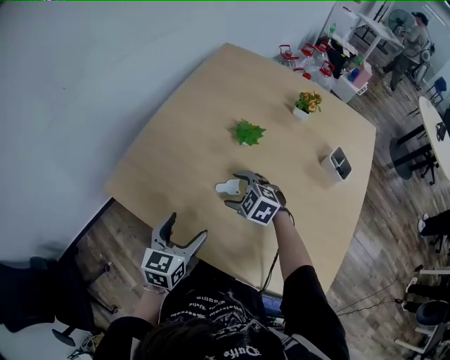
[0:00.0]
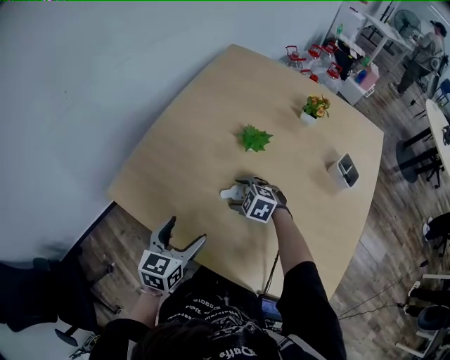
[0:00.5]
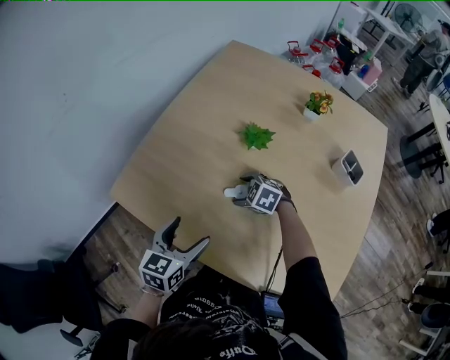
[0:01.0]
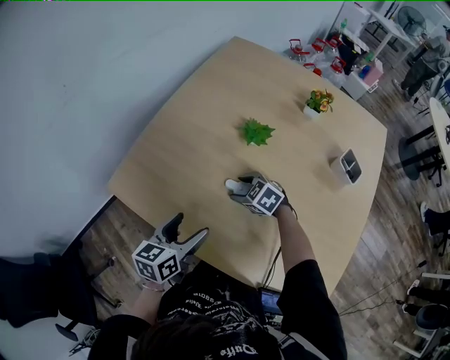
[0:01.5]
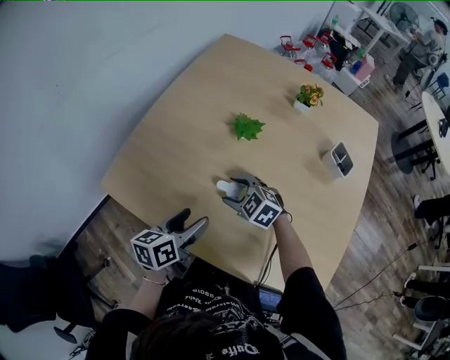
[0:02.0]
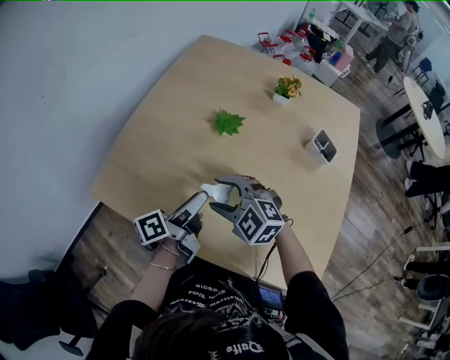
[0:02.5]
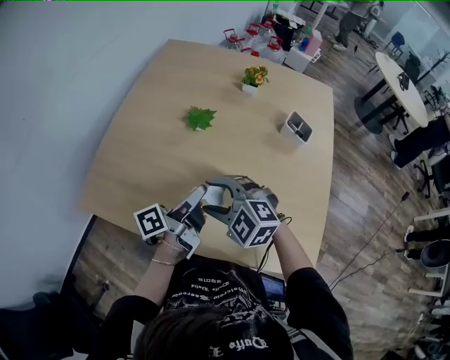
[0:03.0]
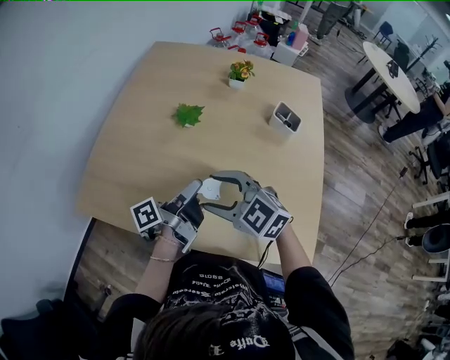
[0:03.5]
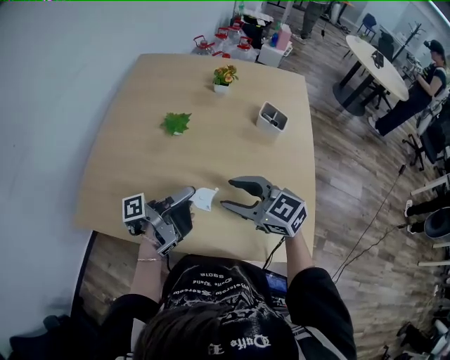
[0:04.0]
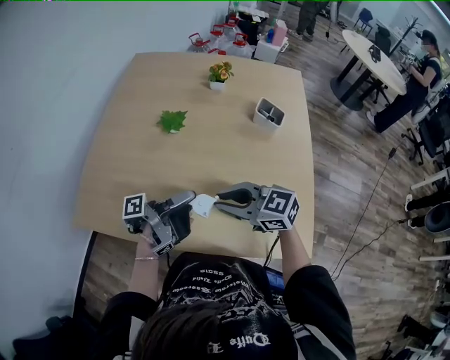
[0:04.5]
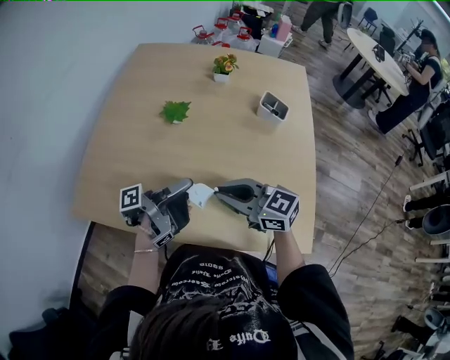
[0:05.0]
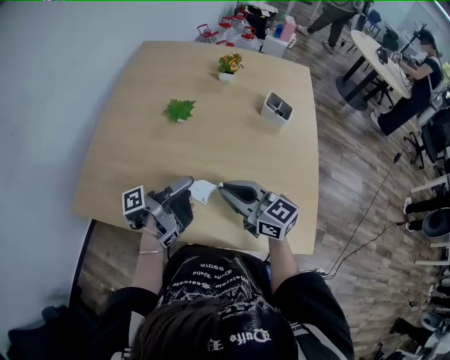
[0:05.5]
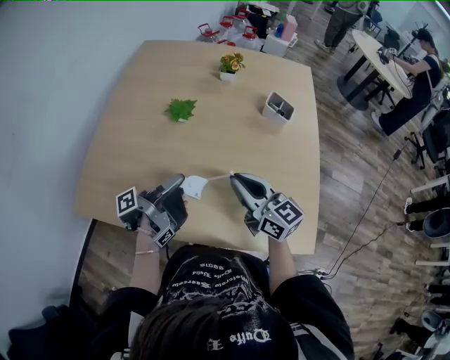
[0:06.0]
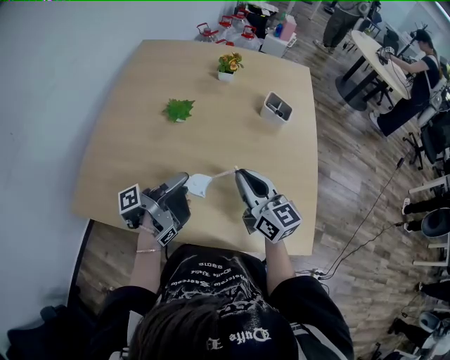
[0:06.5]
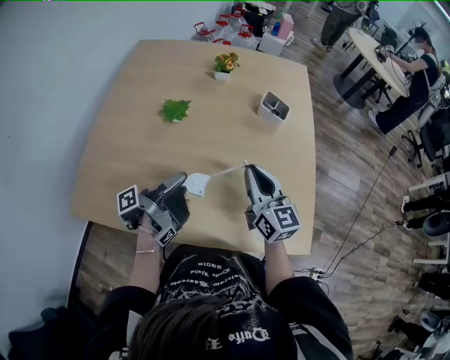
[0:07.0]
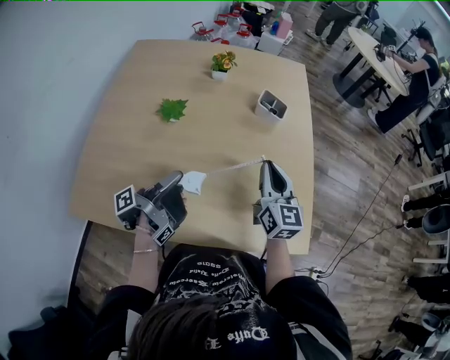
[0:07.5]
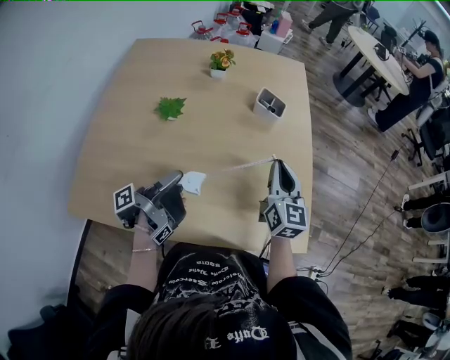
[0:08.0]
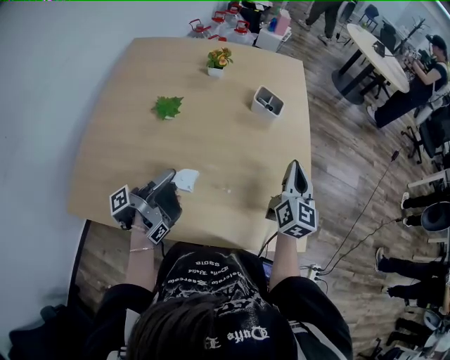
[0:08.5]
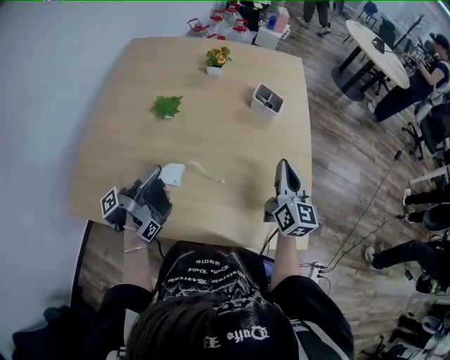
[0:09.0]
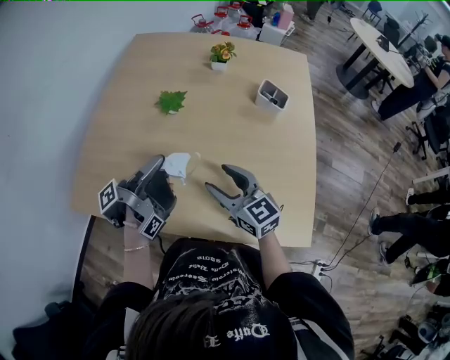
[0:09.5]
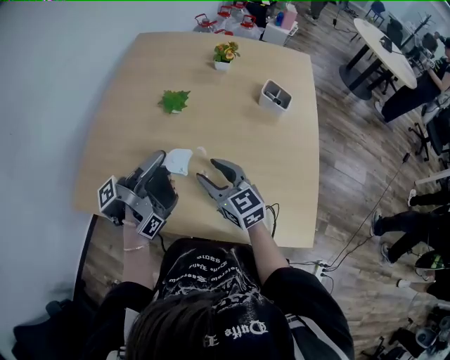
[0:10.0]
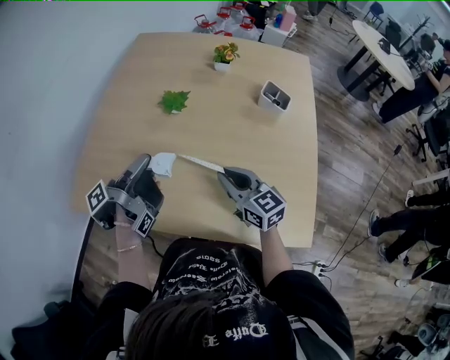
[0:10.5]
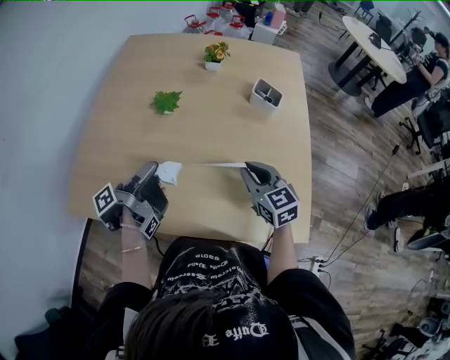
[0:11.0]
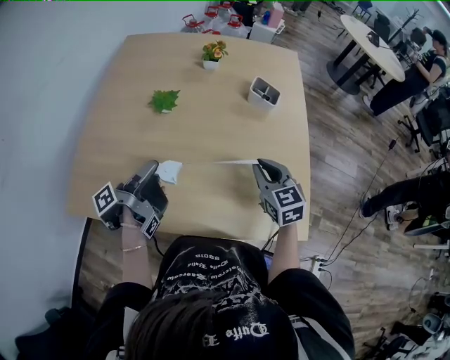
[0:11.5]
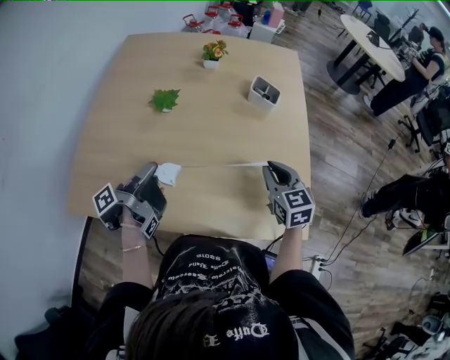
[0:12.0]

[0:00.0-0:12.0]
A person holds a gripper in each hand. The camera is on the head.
0:00.0 to 0:02.0: The left gripper swivels some 30 degrees.
0:02.0 to 0:04.0: The right gripper goes roughly 25 cm upward, backward and to the right, and rotates some 30 degrees. The left gripper moves to the right and upward, about 15 cm, angles its fingers upward, by roughly 30 degrees, and closes its fingers.
0:04.0 to 0:06.0: The left gripper ends up some 5 cm from where it was. The right gripper swivels some 30 degrees, and closes its fingers.
0:06.0 to 0:08.0: The right gripper travels to the right and forward by approximately 15 cm, and changes its angle by some 40 degrees.
0:08.0 to 0:10.0: The left gripper travels upward by about 5 cm; the right gripper moves approximately 20 cm, swivels approximately 40 degrees, and opens its fingers.
0:10.0 to 0:12.0: The left gripper heads downward, covering some 5 cm. Meanwhile the right gripper is displaced to the right by roughly 20 cm, turns by some 30 degrees, and closes.

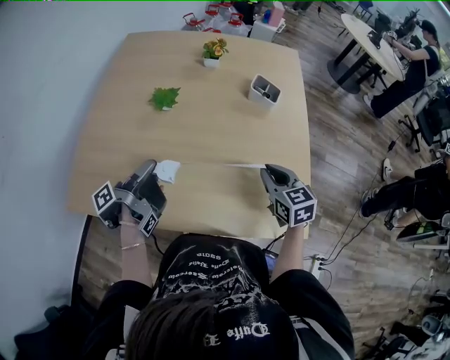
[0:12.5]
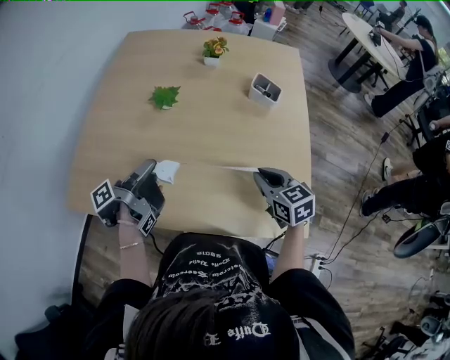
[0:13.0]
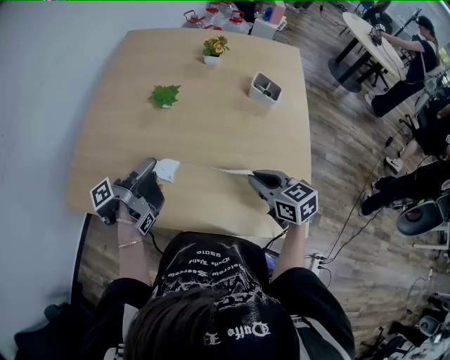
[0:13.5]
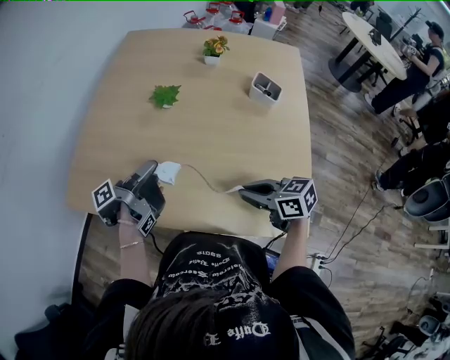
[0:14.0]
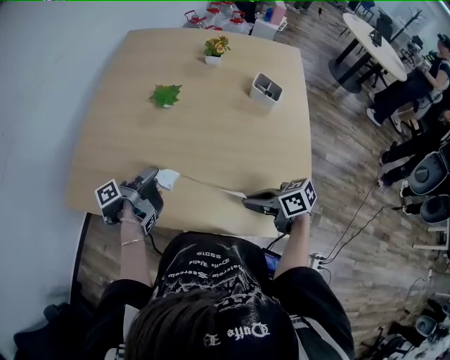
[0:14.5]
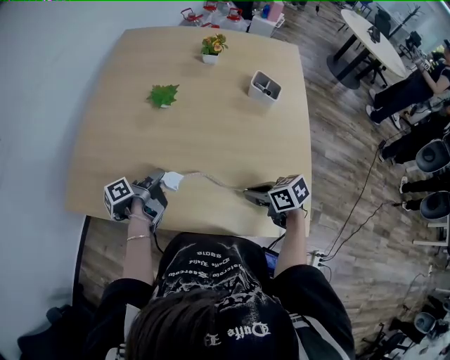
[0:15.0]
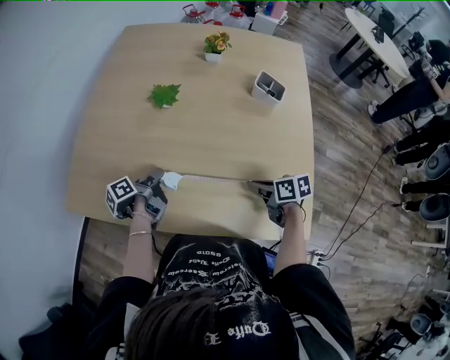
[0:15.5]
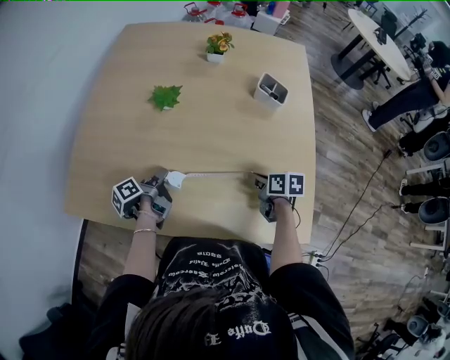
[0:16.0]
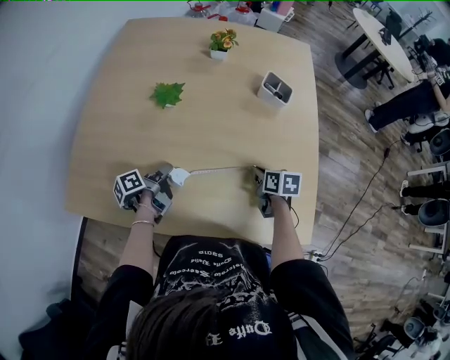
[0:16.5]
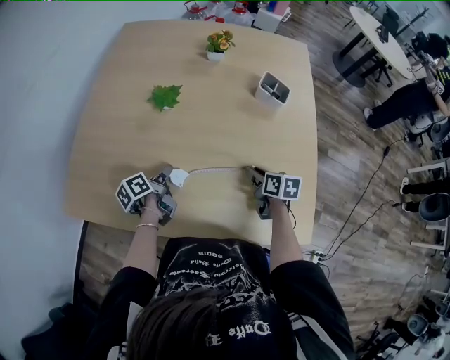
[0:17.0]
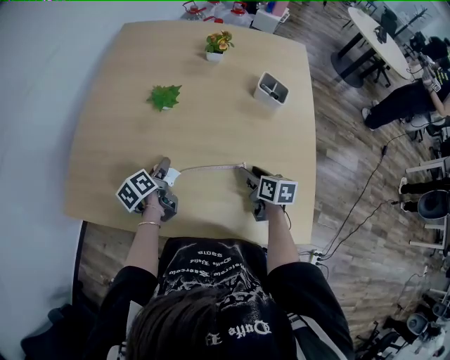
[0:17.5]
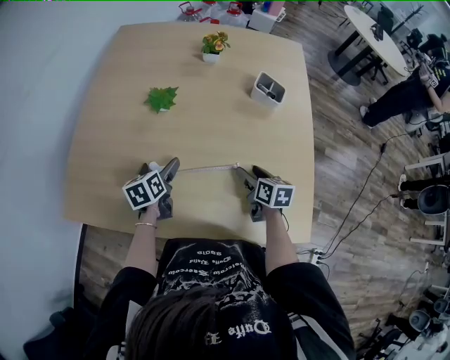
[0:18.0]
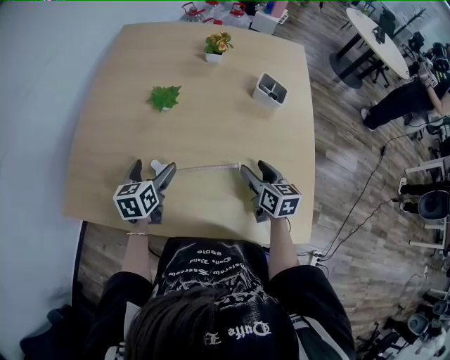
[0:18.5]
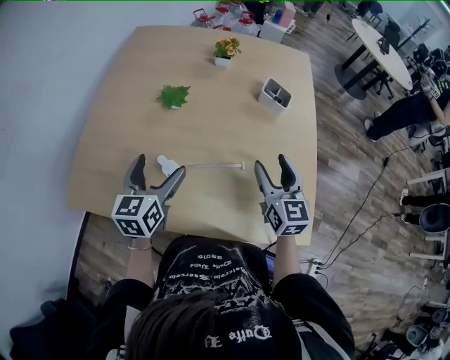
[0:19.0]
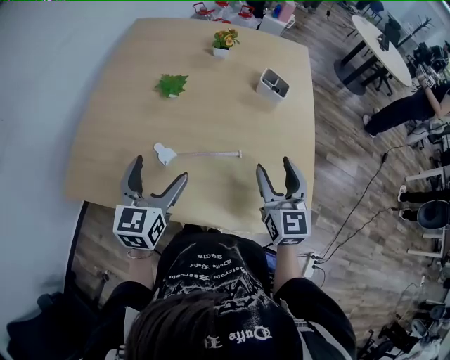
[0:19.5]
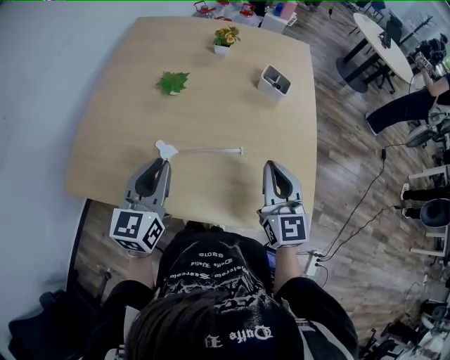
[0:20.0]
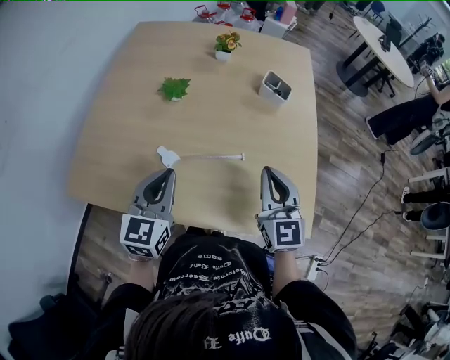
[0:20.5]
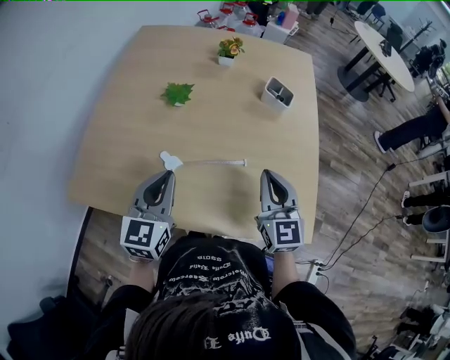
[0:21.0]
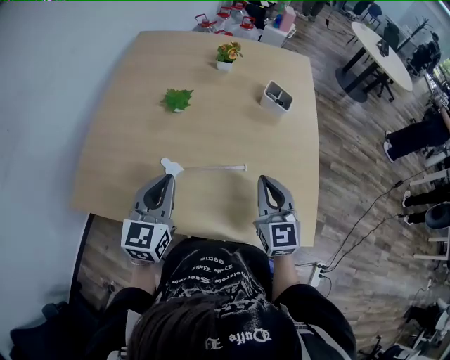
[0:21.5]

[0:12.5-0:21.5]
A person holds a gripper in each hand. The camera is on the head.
0:12.5 to 0:14.5: The right gripper ends up roughly 15 cm from where it was, and changes its angle by about 50 degrees. The left gripper shifts some 5 cm downward.
0:14.5 to 0:17.0: The right gripper moves some 20 cm, and rotates roughly 40 degrees, while the left gripper heads downward, covering roughly 10 cm, and changes its angle by some 30 degrees.
0:17.0 to 0:19.5: The right gripper moves upward, roughly 20 cm, angles its fingers upward, by some 30 degrees, and opens up. Meanwhile the left gripper shifts roughly 25 cm upward and backward, rotates around the line of its fingers by roughly 60 degrees, clockwise from behind, and opens its fingers.
0:19.5 to 0:21.5: The right gripper closes its fingers, while the left gripper closes its fingers.

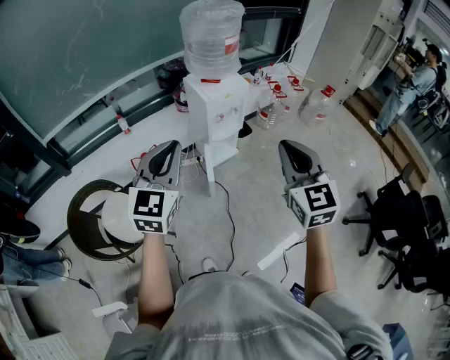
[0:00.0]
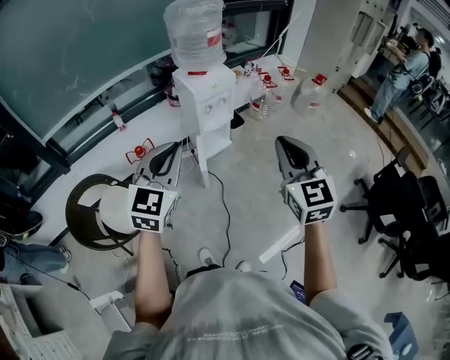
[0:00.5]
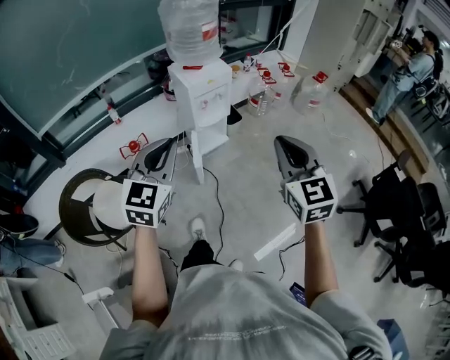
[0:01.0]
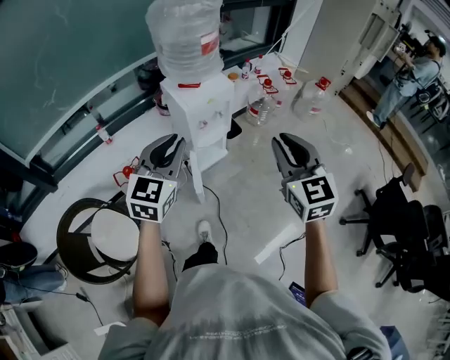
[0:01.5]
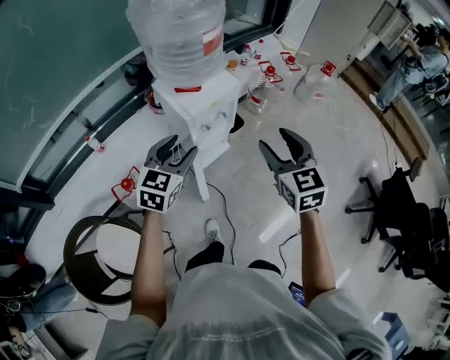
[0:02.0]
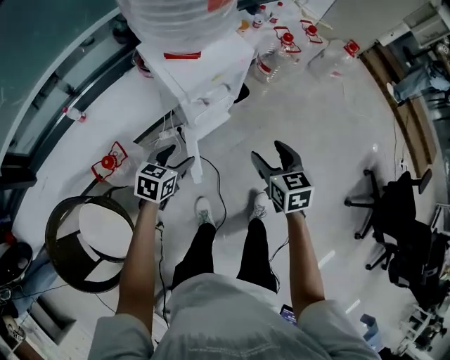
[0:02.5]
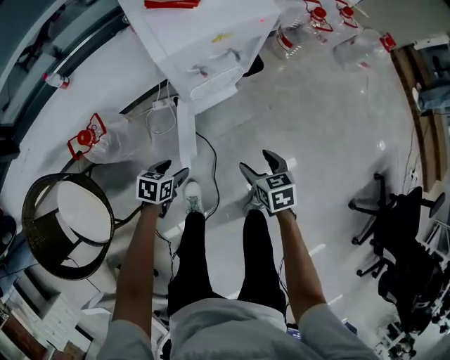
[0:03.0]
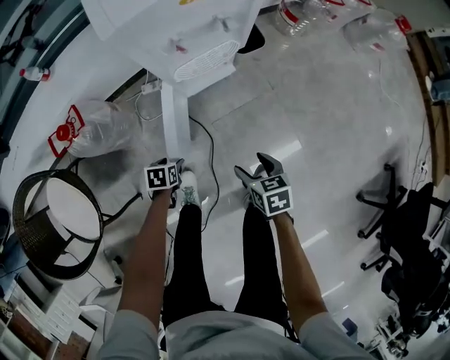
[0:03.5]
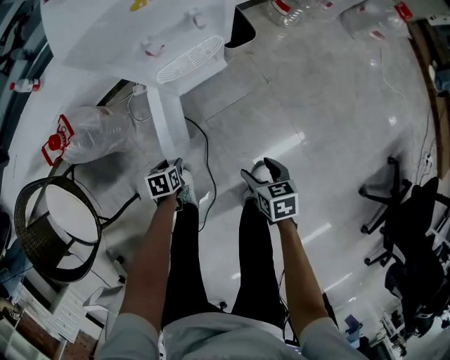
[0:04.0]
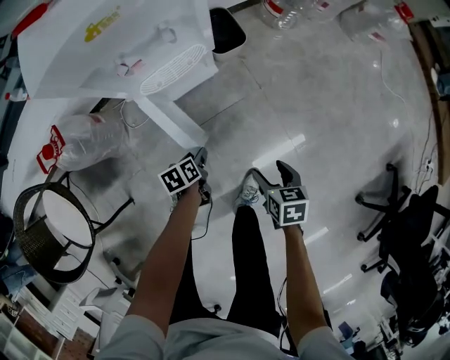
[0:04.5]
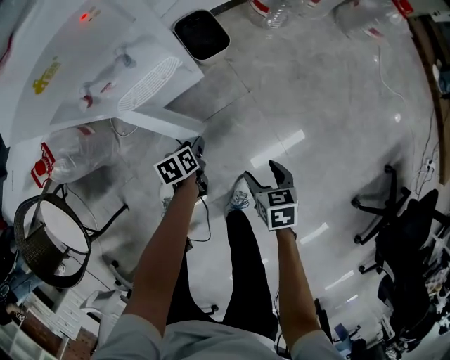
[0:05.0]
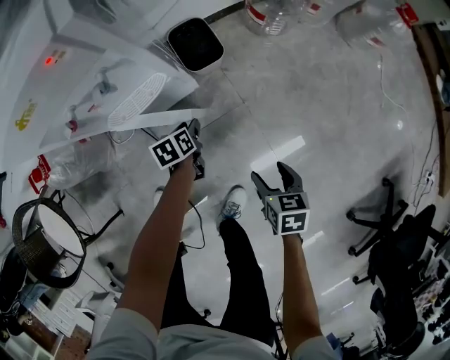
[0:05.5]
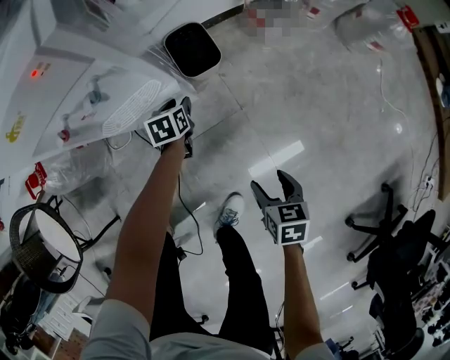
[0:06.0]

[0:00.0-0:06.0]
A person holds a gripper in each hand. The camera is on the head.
0:00.0 to 0:02.0: The right gripper travels forward by roughly 30 cm, and opens. The left gripper shifts approximately 40 cm forward and downward, turns by about 30 degrees, and opens.
0:02.0 to 0:04.0: The grippers both shift downward by roughly 60 cm. The left gripper tips its fingers downward by about 50 degrees, while the right gripper tilts its fingers roughly 40 degrees downward.
0:04.0 to 0:06.0: The right gripper shifts some 25 cm to the right and forward. The left gripper travels forward and to the right by about 40 cm.
